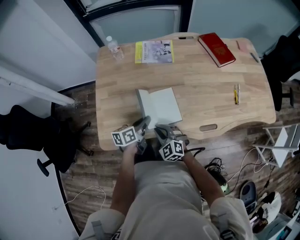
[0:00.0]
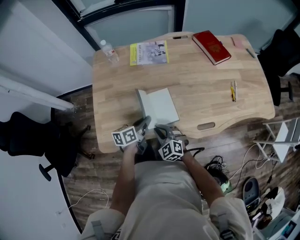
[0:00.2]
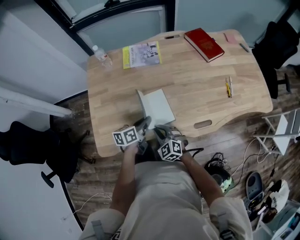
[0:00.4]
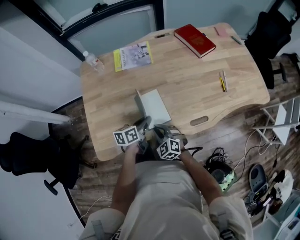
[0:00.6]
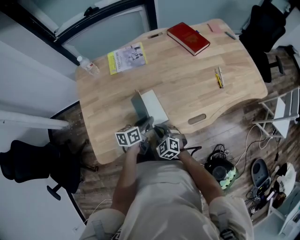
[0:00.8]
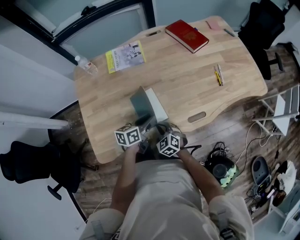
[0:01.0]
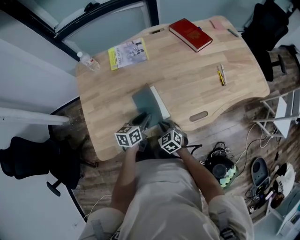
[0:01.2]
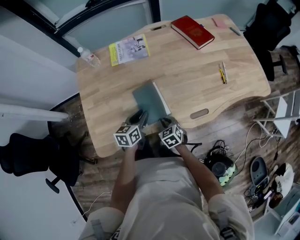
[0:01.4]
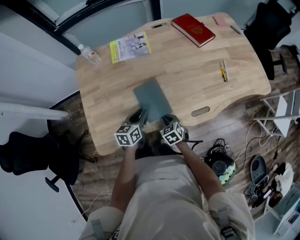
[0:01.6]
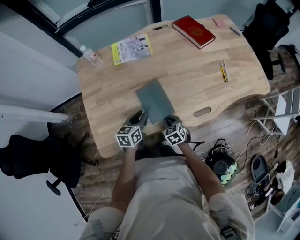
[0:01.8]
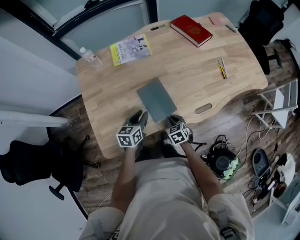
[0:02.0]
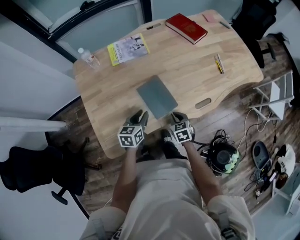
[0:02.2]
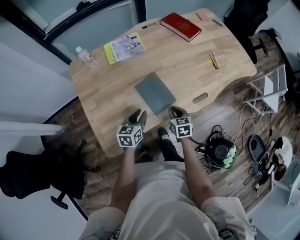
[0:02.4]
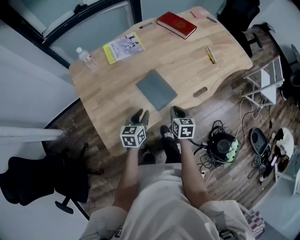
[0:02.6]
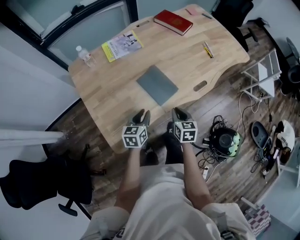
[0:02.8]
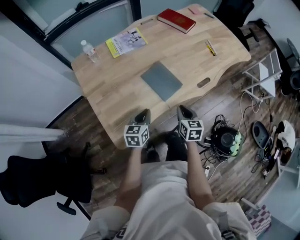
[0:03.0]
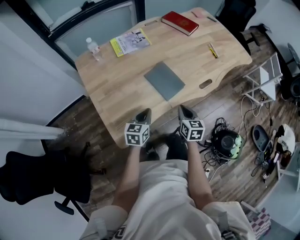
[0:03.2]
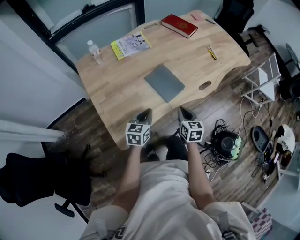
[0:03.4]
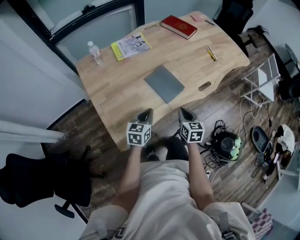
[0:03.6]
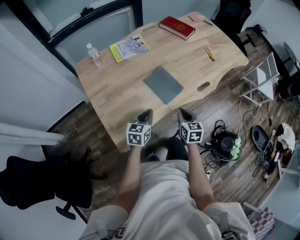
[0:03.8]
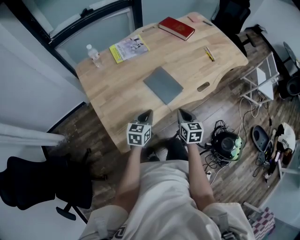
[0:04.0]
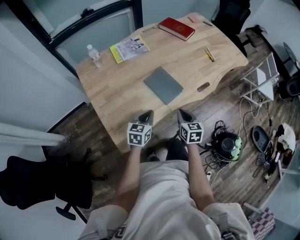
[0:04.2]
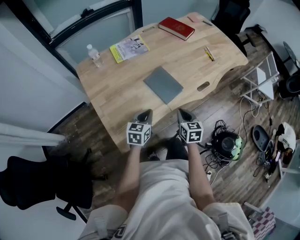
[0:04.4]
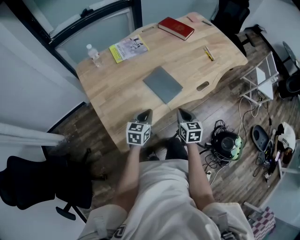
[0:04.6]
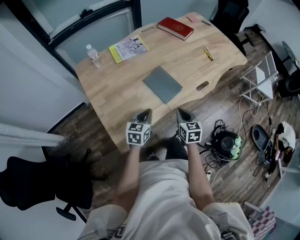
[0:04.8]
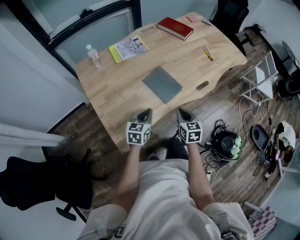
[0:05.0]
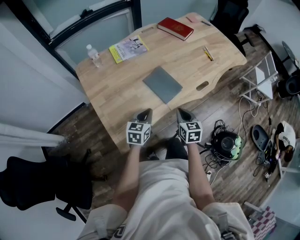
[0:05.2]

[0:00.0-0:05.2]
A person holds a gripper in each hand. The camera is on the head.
0:00.0 to 0:01.8: The left gripper reaches some 10 cm to the right, then returns, and rotates some 30 degrees, while the right gripper goes approximately 15 cm to the right and downward, and rotates about 40 degrees.
0:01.8 to 0:03.4: The right gripper shifts some 15 cm upward and backward, and swivels approximately 40 degrees; the left gripper goes roughly 15 cm backward and to the left, changes its angle by roughly 20 degrees, and closes up.
0:03.4 to 0:05.2: The grippers move only a little.

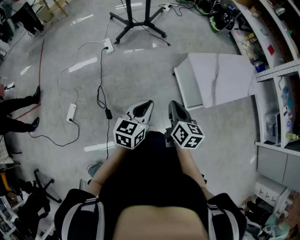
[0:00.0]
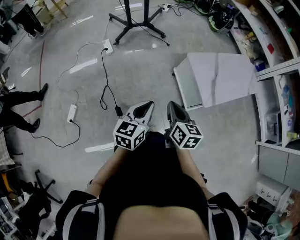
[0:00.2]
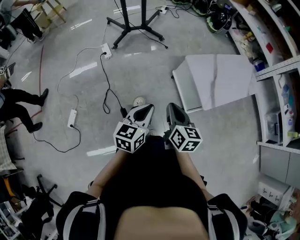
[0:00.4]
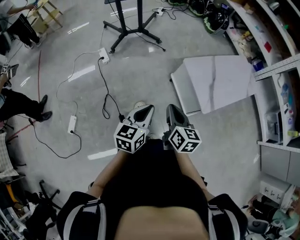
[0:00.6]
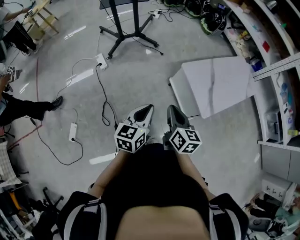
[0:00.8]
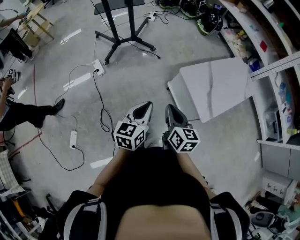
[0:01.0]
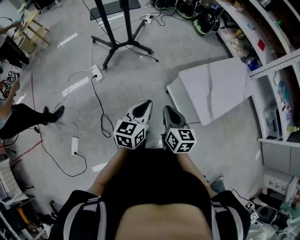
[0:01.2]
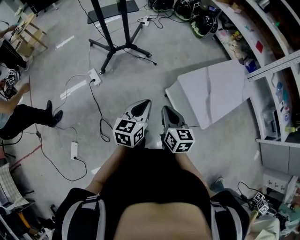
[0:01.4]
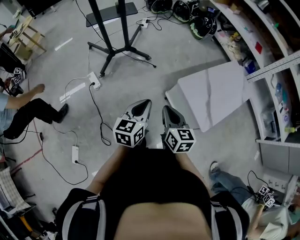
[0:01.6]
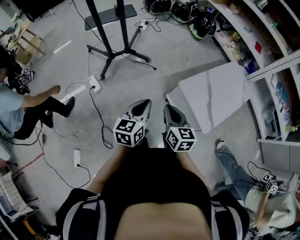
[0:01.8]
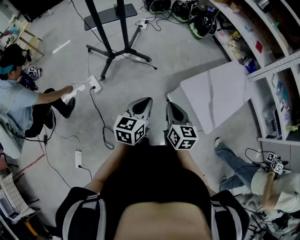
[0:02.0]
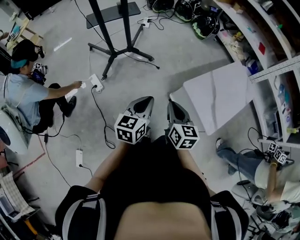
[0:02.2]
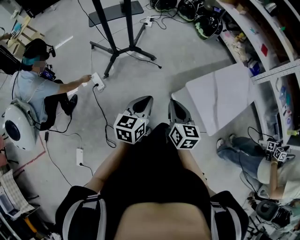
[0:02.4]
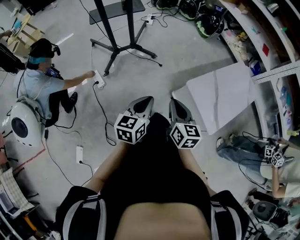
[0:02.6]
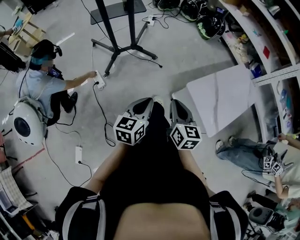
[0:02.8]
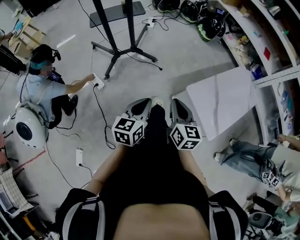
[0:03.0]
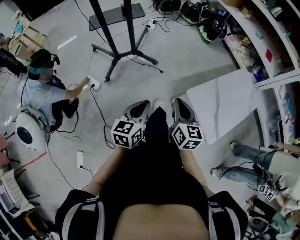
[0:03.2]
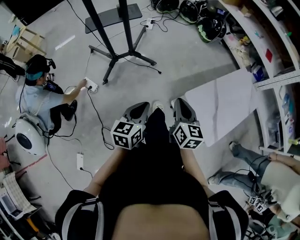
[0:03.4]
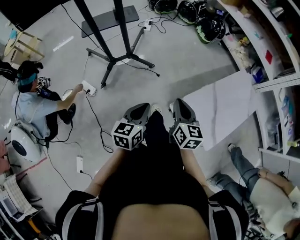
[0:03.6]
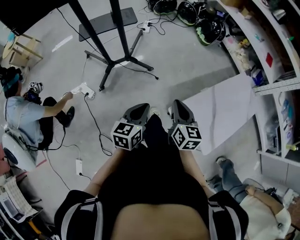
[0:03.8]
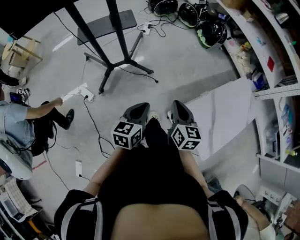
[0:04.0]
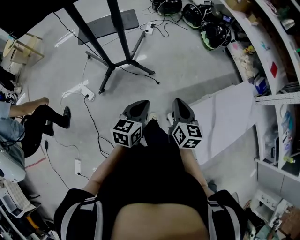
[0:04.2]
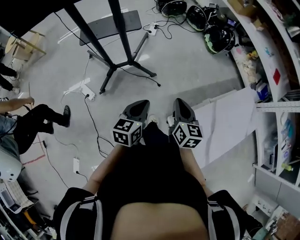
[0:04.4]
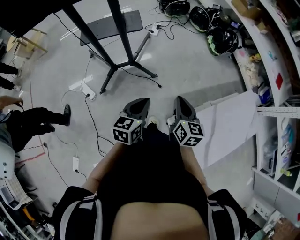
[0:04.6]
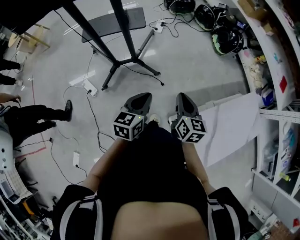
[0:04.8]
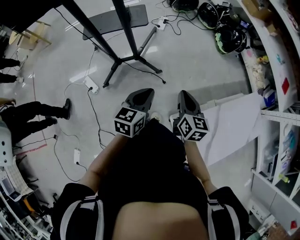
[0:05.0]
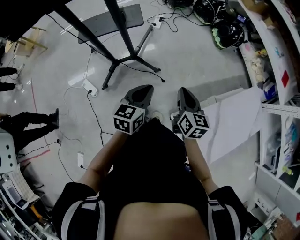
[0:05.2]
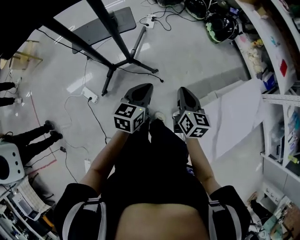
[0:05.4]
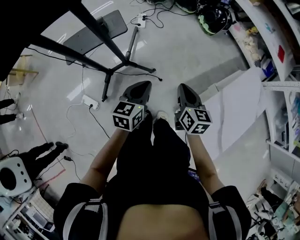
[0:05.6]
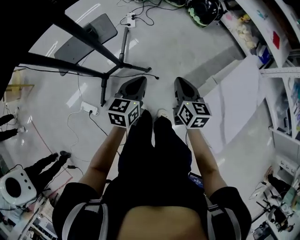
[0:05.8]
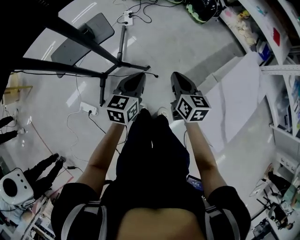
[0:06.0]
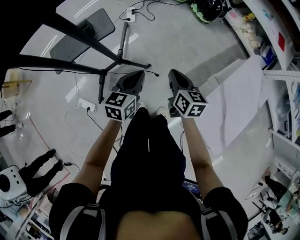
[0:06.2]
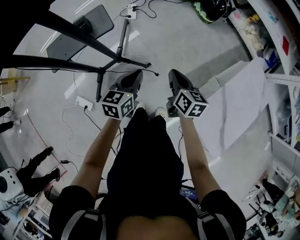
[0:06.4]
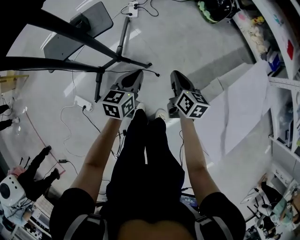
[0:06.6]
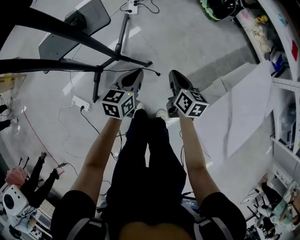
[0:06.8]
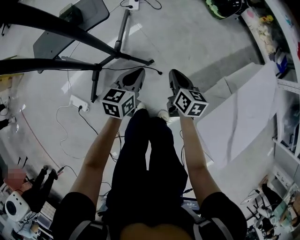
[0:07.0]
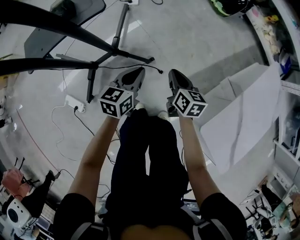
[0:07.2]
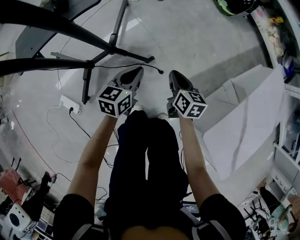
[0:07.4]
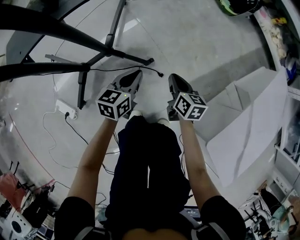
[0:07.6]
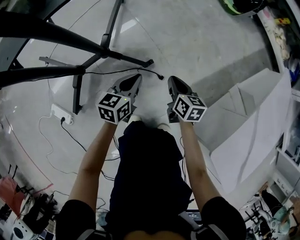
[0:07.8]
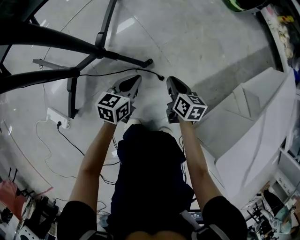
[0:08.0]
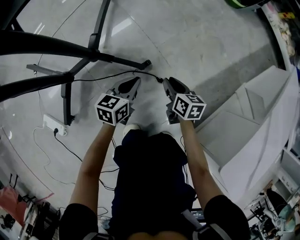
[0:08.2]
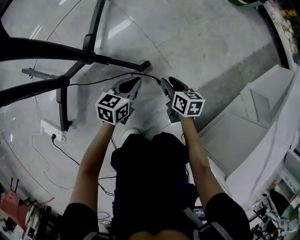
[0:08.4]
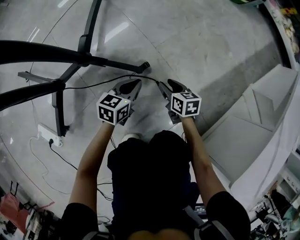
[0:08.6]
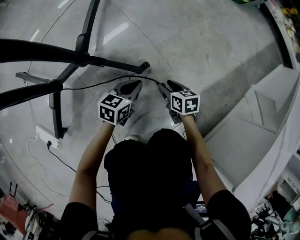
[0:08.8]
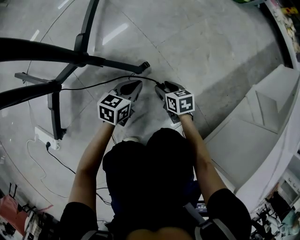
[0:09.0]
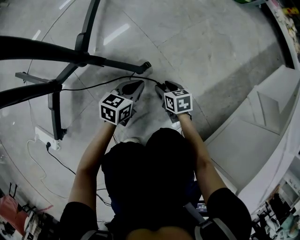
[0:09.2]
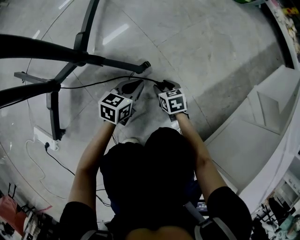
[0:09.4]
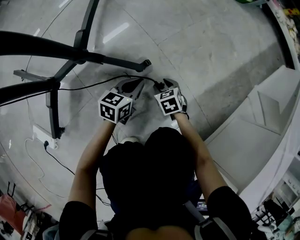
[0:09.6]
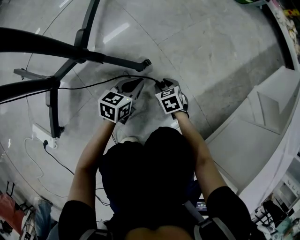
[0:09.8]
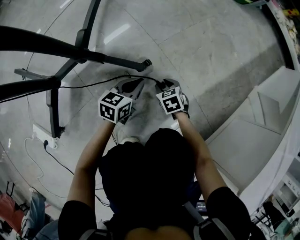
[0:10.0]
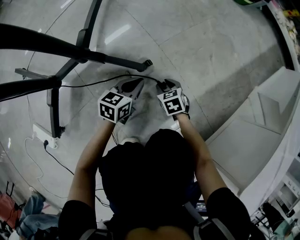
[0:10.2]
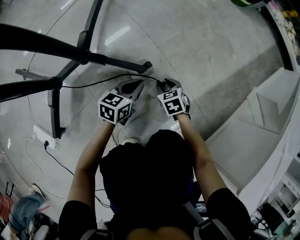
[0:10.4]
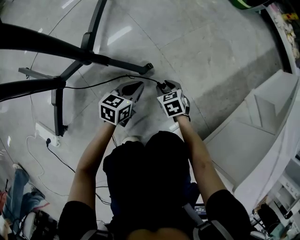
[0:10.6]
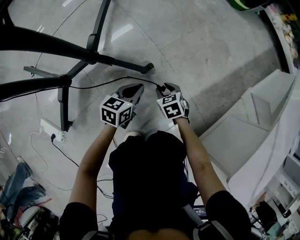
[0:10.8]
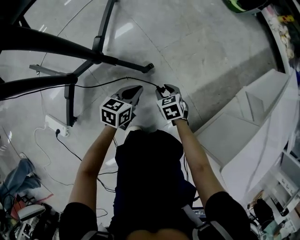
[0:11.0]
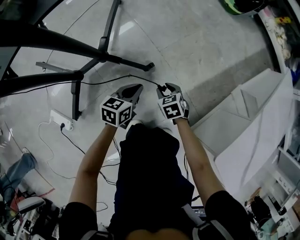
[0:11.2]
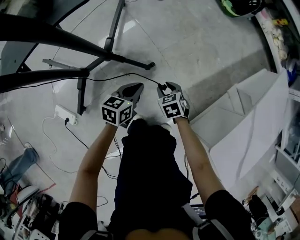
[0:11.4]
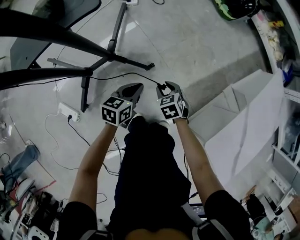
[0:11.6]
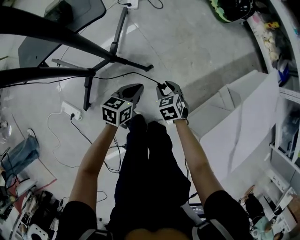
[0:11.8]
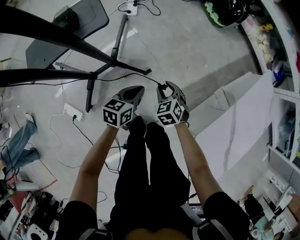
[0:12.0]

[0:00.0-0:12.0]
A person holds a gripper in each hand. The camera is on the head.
0:00.0 to 0:01.6: Both grippers move forward, roughly 25 cm.
0:01.6 to 0:03.0: The right gripper goes roughly 10 cm forward. Meanwhile the left gripper is displaced forward and to the left by roughly 10 cm.
0:03.0 to 0:04.4: The two grippers go some 30 cm forward.
0:04.4 to 0:06.0: The two grippers go roughly 20 cm forward.
0:06.0 to 0:07.6: The two grippers go about 40 cm downward.
0:07.6 to 0:09.0: Both grippers move downward, roughly 35 cm. The right gripper changes its angle by approximately 20 degrees, and opens.
0:09.0 to 0:10.4: The right gripper rotates about 20 degrees.
0:10.4 to 0:12.0: The grippers both shift upward by approximately 50 cm.

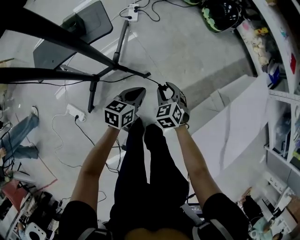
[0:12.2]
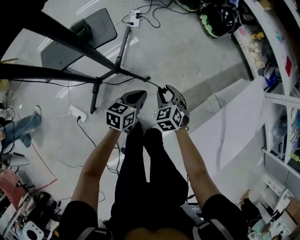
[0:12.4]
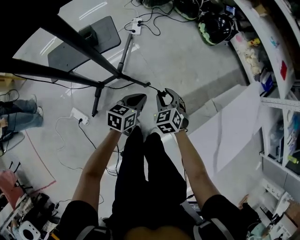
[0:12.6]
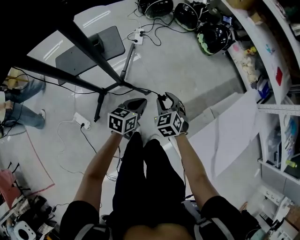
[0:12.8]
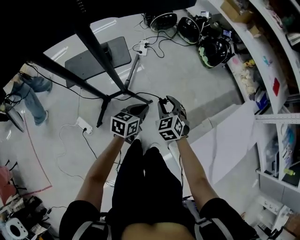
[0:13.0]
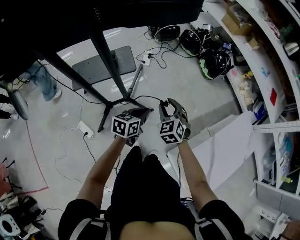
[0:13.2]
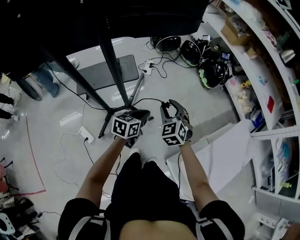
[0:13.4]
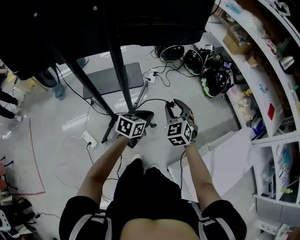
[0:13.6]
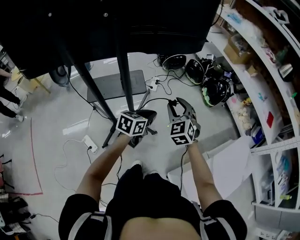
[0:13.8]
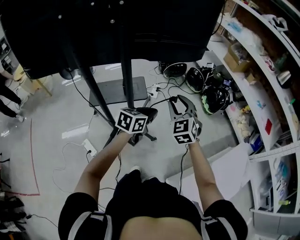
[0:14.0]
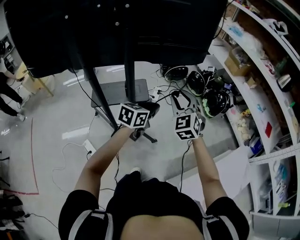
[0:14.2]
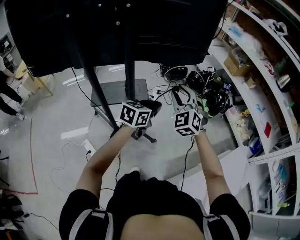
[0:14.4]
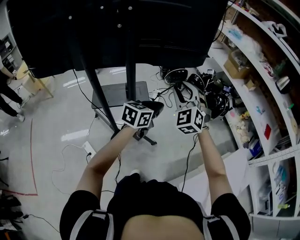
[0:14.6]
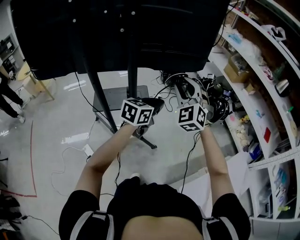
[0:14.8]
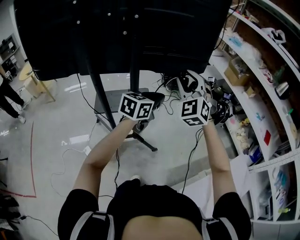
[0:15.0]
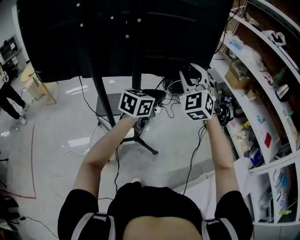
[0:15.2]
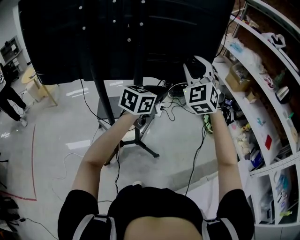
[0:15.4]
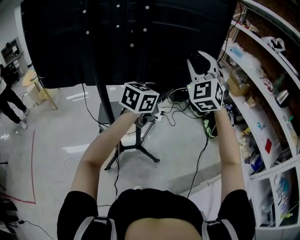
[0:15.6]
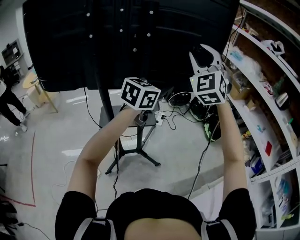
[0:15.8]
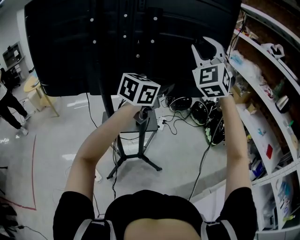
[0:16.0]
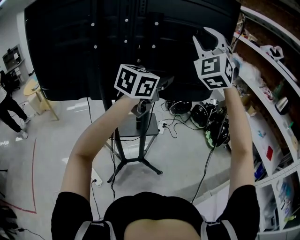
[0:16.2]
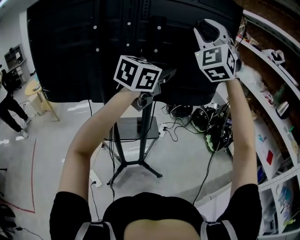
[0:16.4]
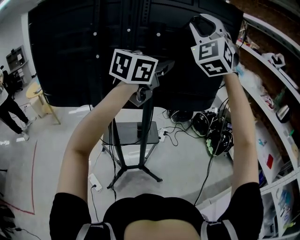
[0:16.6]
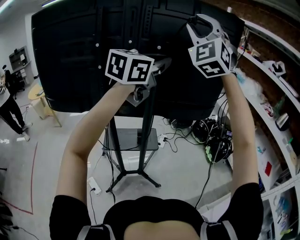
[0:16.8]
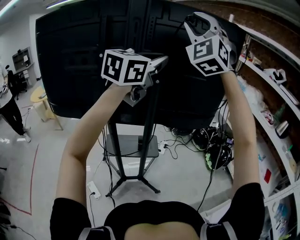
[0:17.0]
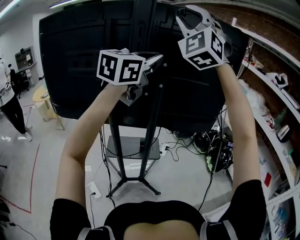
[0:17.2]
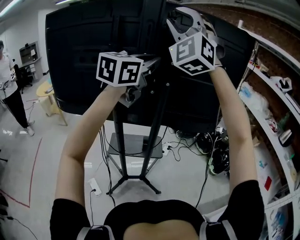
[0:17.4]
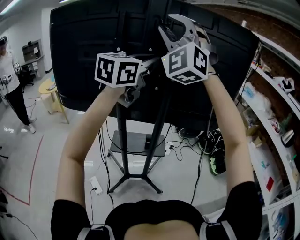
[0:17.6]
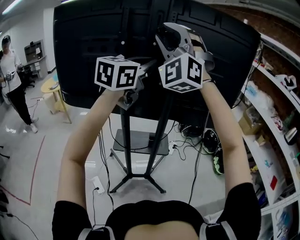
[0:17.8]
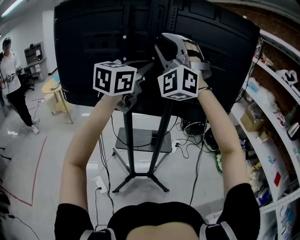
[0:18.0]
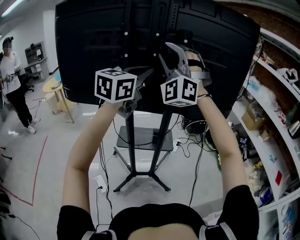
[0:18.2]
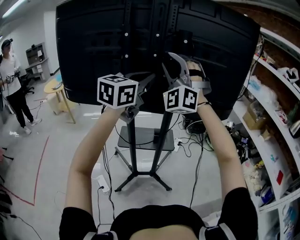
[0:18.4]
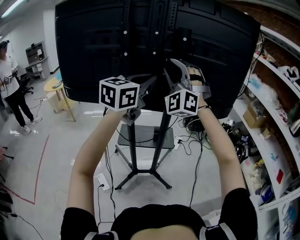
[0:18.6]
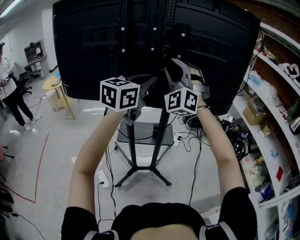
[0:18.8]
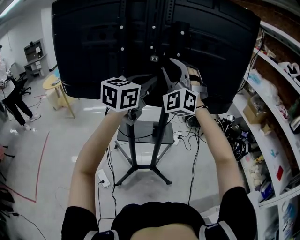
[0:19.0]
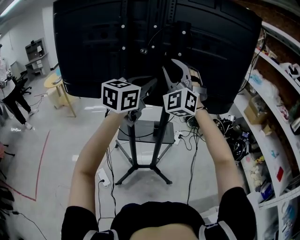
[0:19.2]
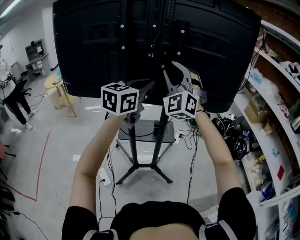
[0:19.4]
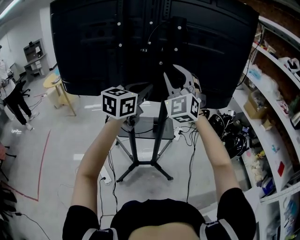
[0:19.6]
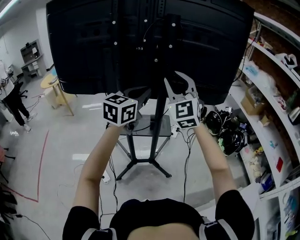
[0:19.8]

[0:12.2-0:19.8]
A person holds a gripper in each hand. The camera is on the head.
0:12.2 to 0:13.8: The grippers both shift upward by approximately 35 cm. The right gripper swivels approximately 30 degrees.
0:13.8 to 0:15.2: Both grippers travel together upward, roughly 25 cm. The right gripper changes its angle by about 30 degrees.
0:15.2 to 0:16.8: Both grippers move upward, approximately 35 cm. The left gripper turns by roughly 20 degrees; the right gripper turns by about 30 degrees.
0:16.8 to 0:18.2: The left gripper shifts roughly 15 cm to the left and downward, while the right gripper moves downward and to the left, about 25 cm.
0:18.2 to 0:19.8: The left gripper is displaced downward by about 15 cm, while the right gripper is displaced downward and to the right by roughly 15 cm, and twists roughly 40 degrees clockwise, seen from behind.
